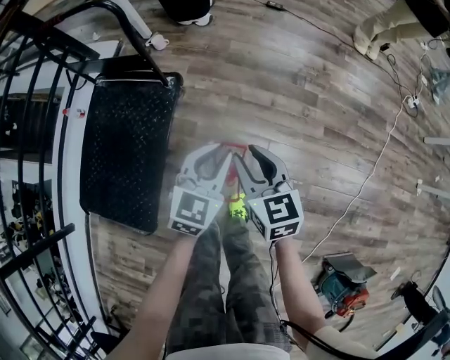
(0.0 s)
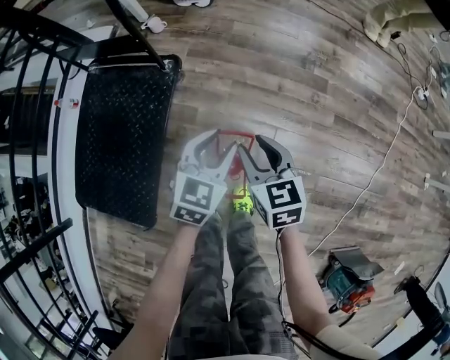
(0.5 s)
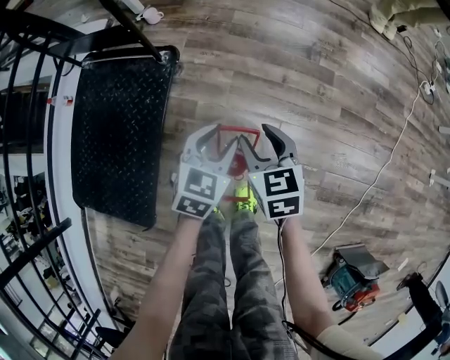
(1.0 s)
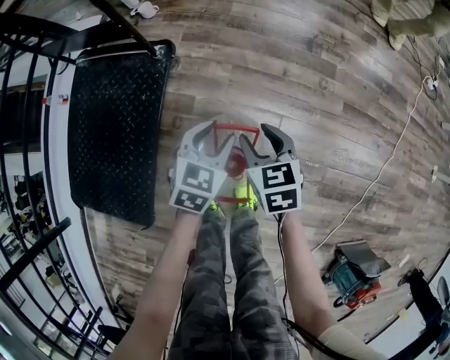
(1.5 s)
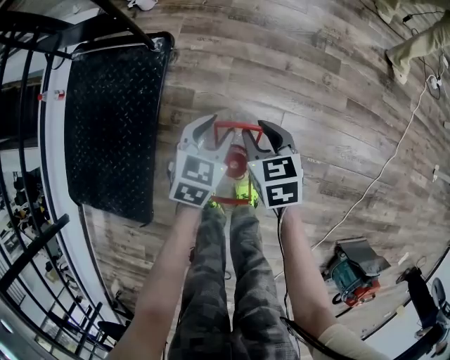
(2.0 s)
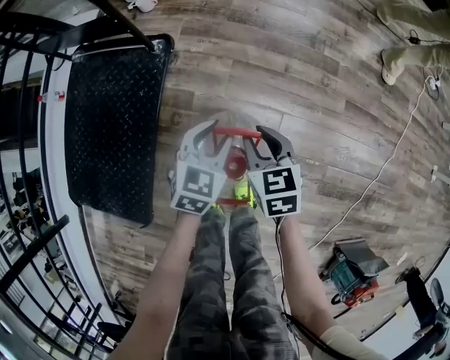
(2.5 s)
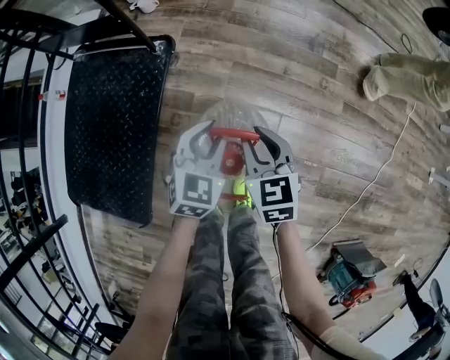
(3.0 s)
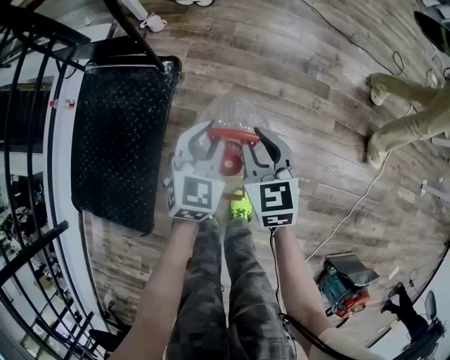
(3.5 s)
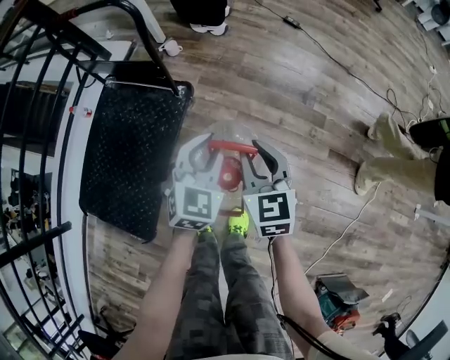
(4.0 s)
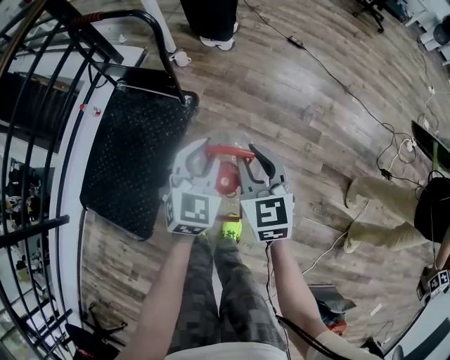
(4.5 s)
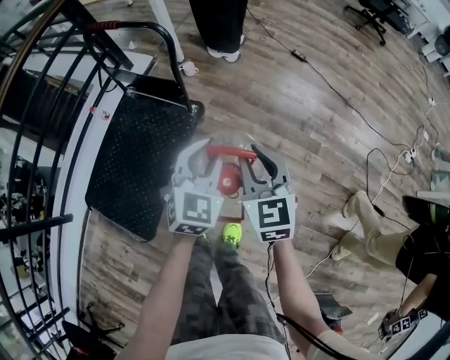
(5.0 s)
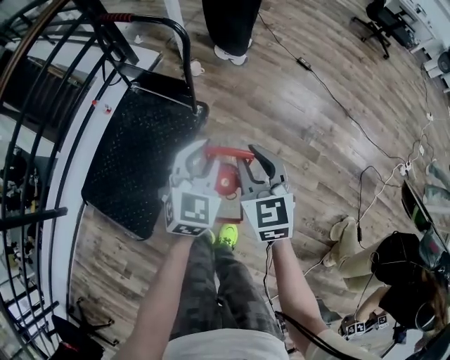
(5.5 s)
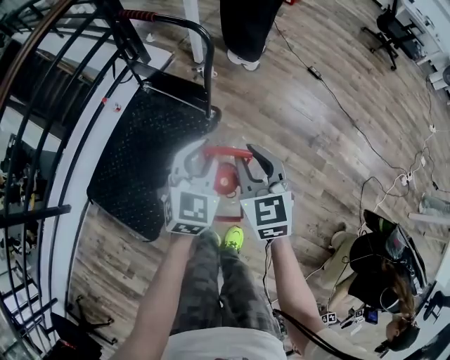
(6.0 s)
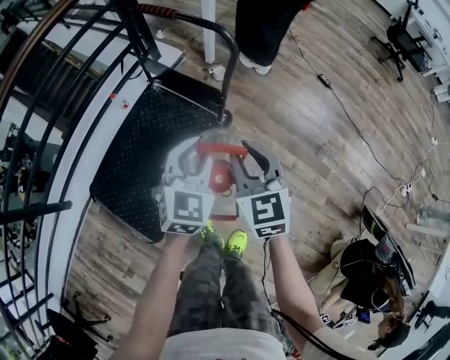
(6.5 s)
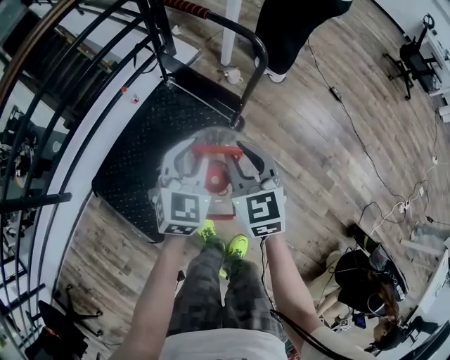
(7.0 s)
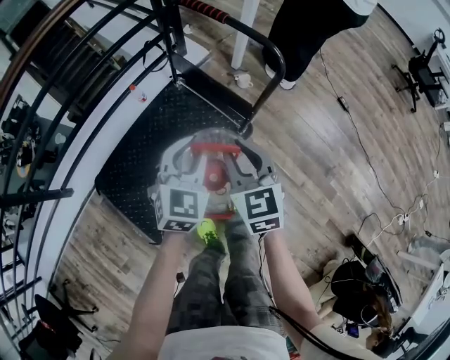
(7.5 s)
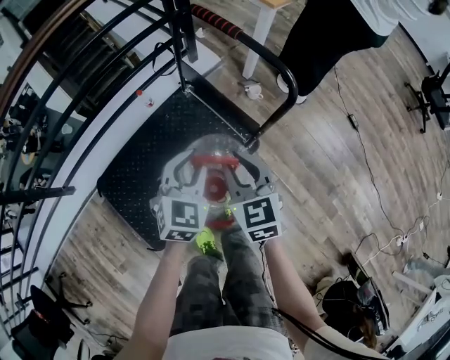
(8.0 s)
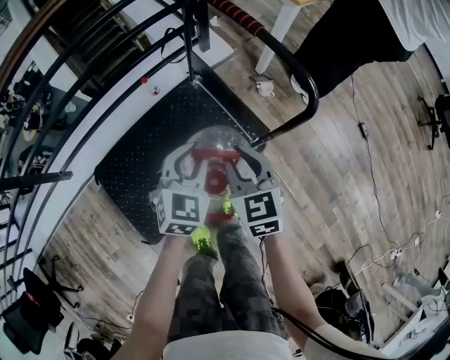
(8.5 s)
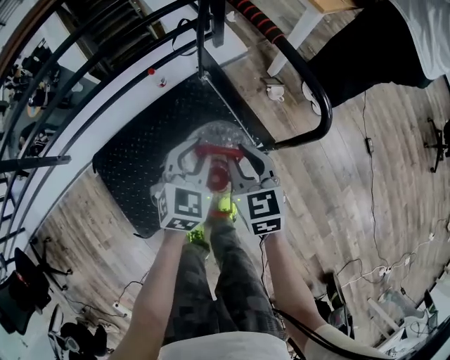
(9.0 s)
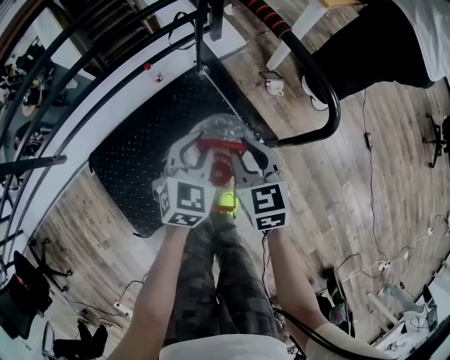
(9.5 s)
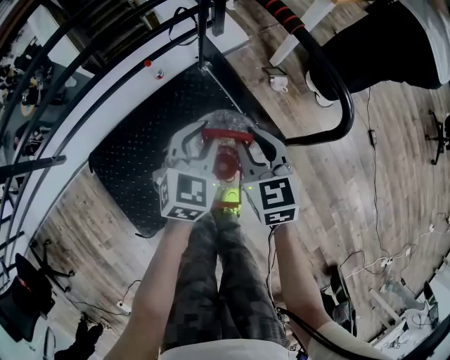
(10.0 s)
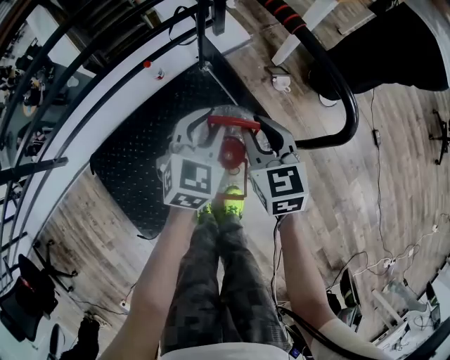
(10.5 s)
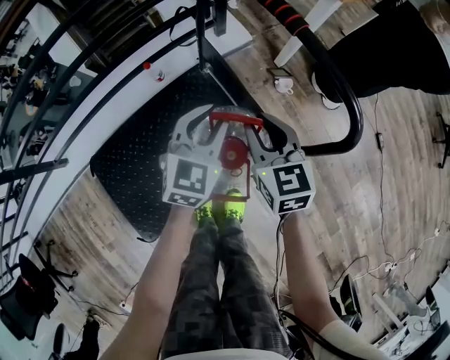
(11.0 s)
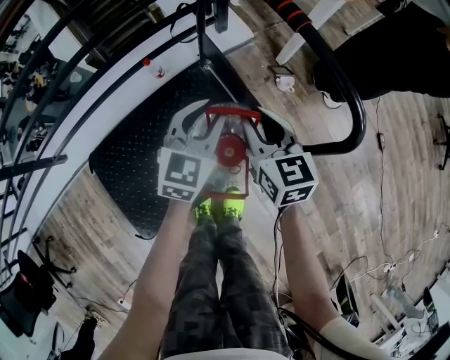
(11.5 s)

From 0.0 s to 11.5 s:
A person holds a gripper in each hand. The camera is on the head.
From 0.0 s to 2.0 s: The two grippers go roughly 25 cm downward. The left gripper opens up.
From 2.0 s to 4.0 s: The two grippers go roughly 25 cm upward. The left gripper swivels some 20 degrees. The right gripper changes its angle by some 20 degrees.
From 4.0 s to 6.0 s: Both grippers move upward and to the left, some 20 cm.
From 6.0 s to 7.5 s: Both grippers travel together to the left and forward, roughly 20 cm.
From 7.5 s to 9.5 s: Both grippers travel together forward and downward, roughly 20 cm.
From 9.5 s to 11.5 s: The grippers both shift forward by approximately 10 cm.

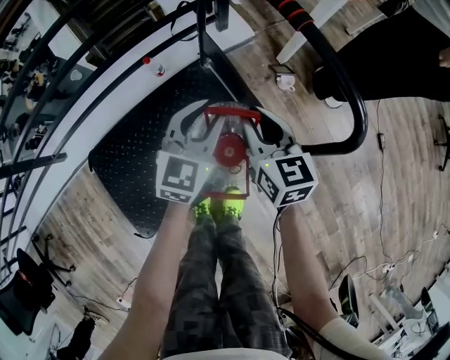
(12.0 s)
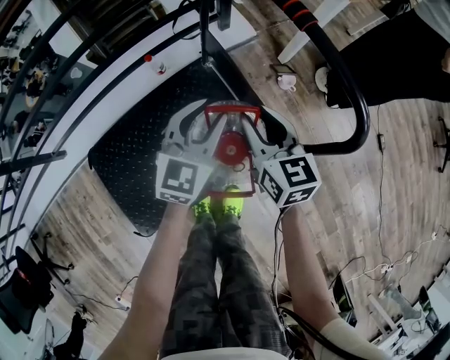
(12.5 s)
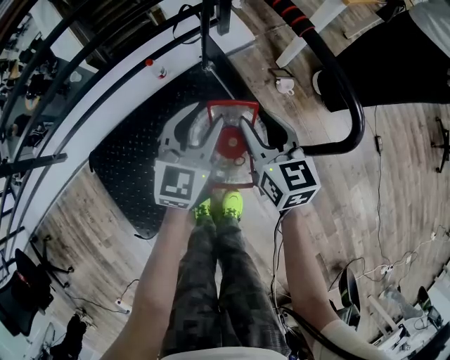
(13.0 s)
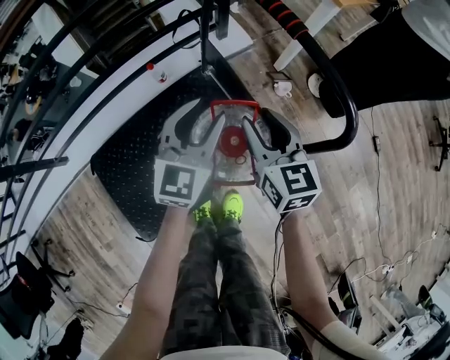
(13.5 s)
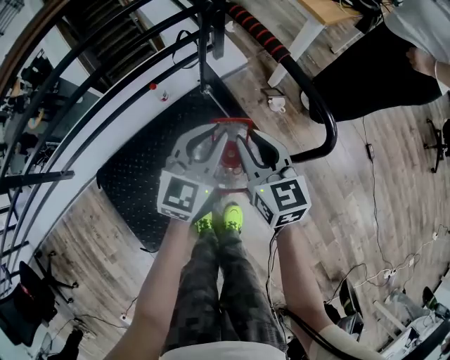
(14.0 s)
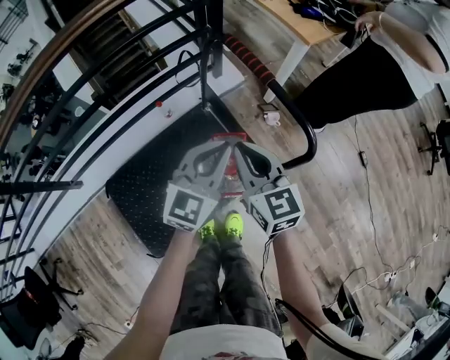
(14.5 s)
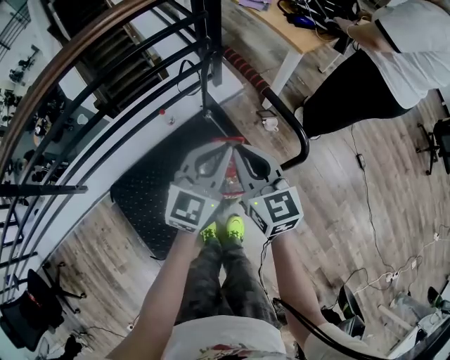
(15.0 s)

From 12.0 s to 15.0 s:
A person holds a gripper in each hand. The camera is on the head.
From 12.0 s to 13.5 s: The right gripper opens. Meanwhile the left gripper is displaced upward by approximately 5 cm.
From 13.5 s to 15.0 s: The grippers both shift upward by approximately 20 cm. The right gripper closes its fingers; the left gripper closes.

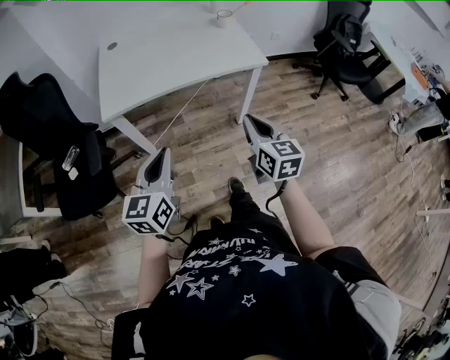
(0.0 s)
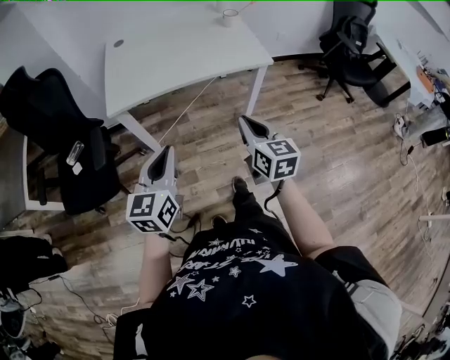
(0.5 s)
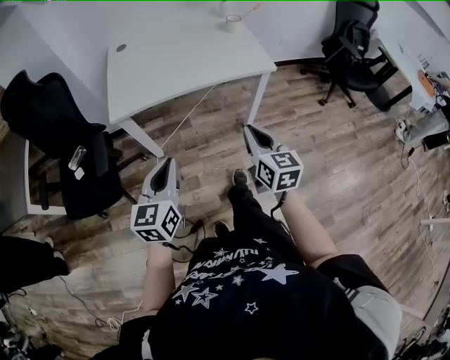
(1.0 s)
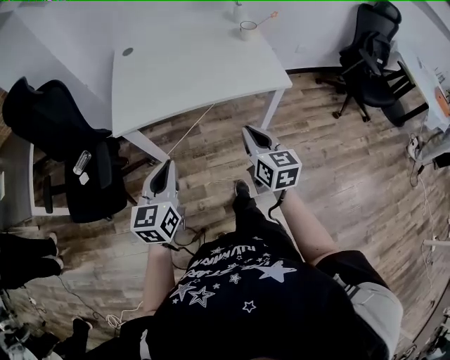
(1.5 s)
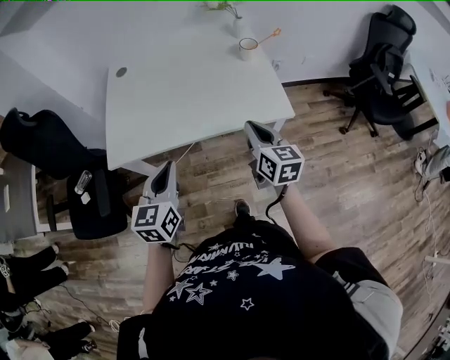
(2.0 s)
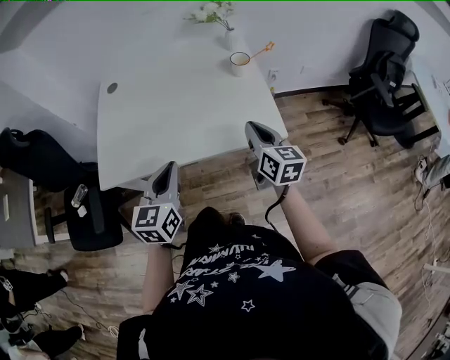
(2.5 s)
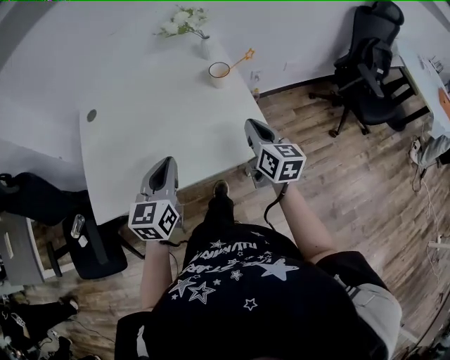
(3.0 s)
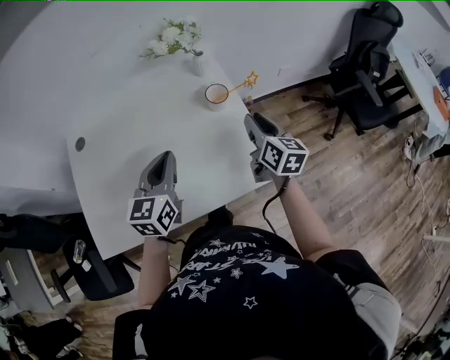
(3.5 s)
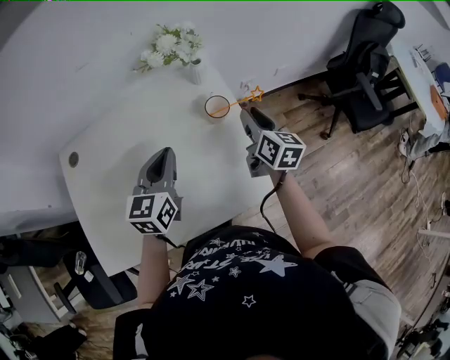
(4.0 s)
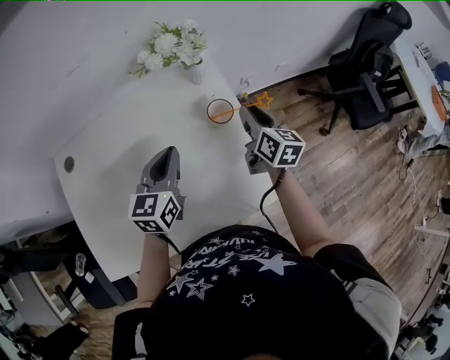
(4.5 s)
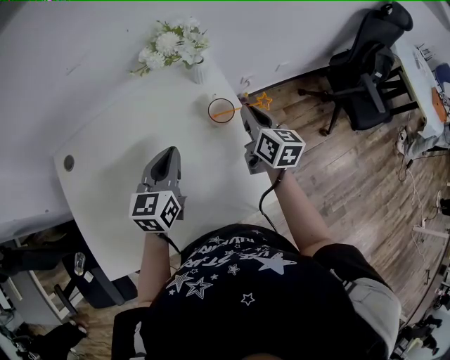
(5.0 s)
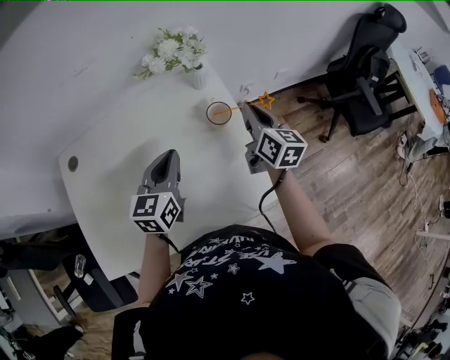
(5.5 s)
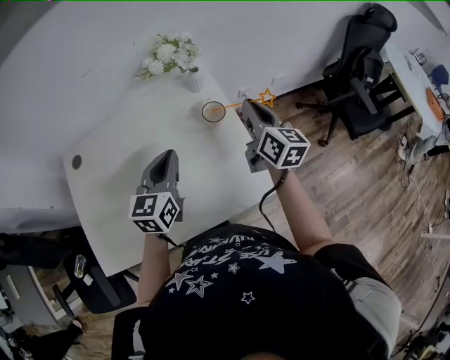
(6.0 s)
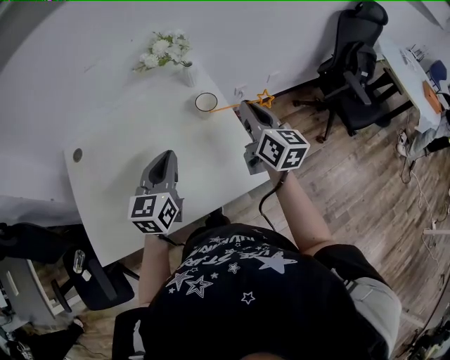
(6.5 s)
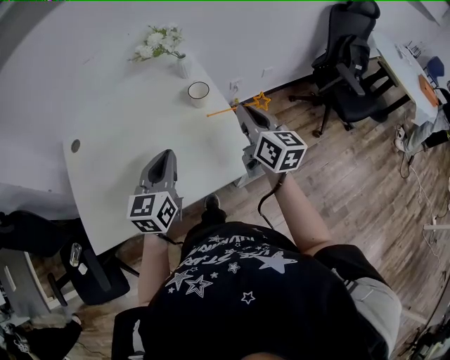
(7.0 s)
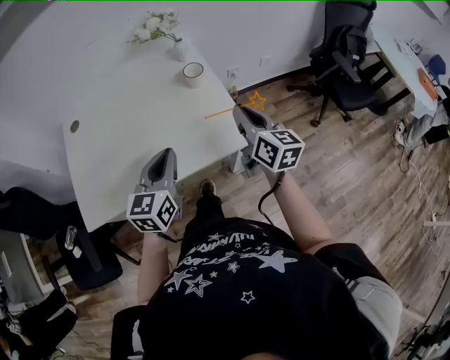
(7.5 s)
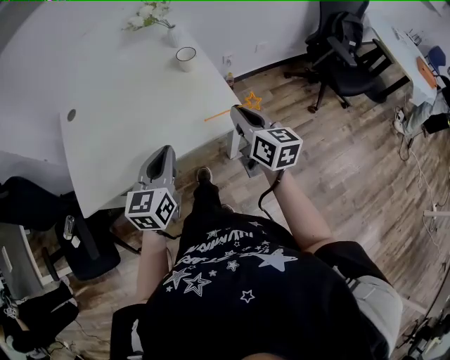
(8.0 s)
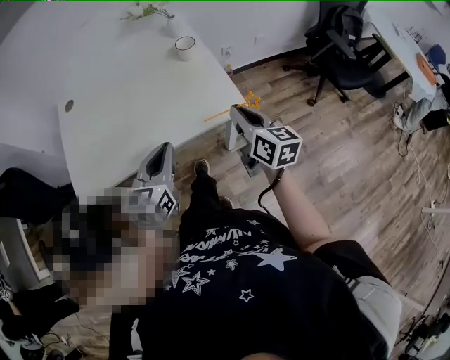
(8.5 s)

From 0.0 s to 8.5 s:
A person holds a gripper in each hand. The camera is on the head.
From 0.0 s to 2.0 s: Both grippers move forward, some 25 cm.
From 2.0 s to 4.0 s: Both grippers move forward, approximately 40 cm. The right gripper rotates some 20 degrees, and opens.
From 4.0 s to 6.5 s: The left gripper heads backward, covering some 5 cm. The right gripper goes roughly 10 cm upward and backward, and closes its fingers.
From 6.5 s to 8.5 s: Both grippers move backward, some 25 cm.

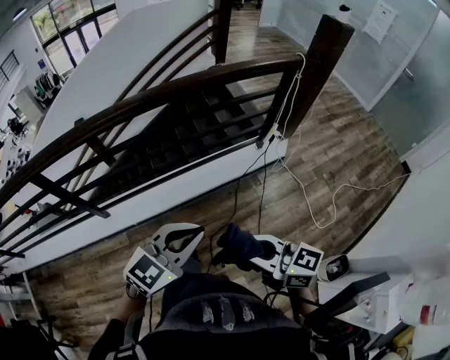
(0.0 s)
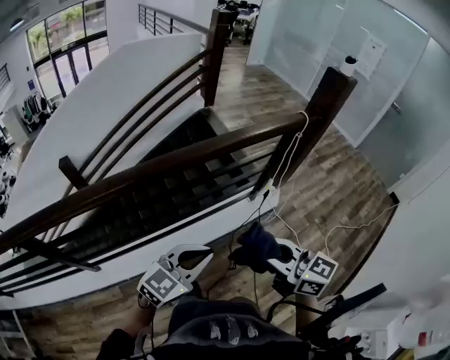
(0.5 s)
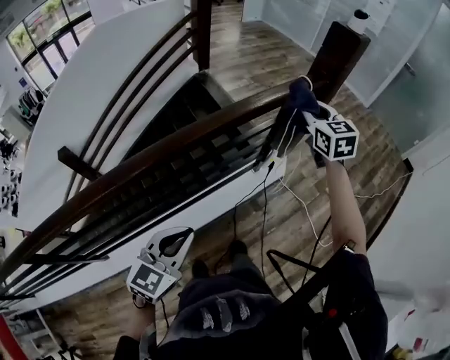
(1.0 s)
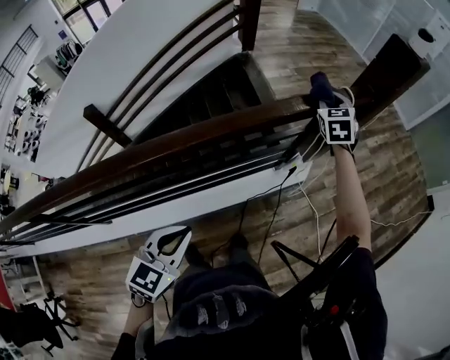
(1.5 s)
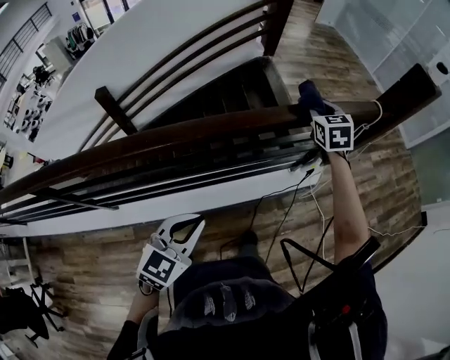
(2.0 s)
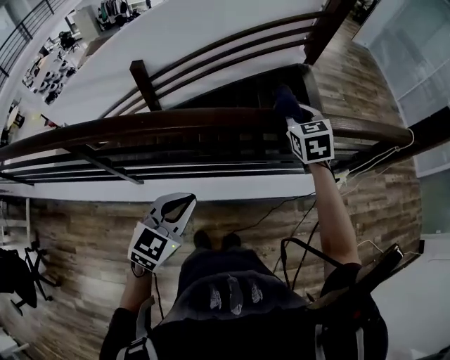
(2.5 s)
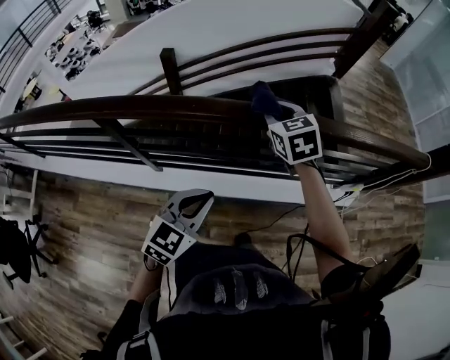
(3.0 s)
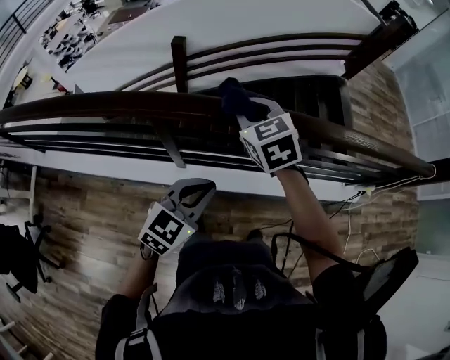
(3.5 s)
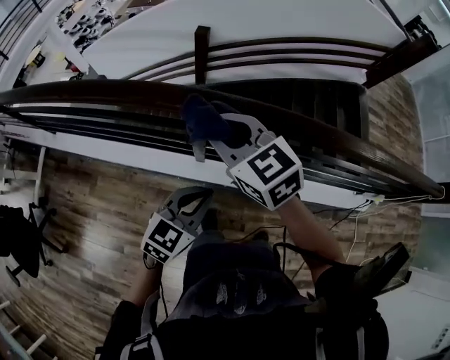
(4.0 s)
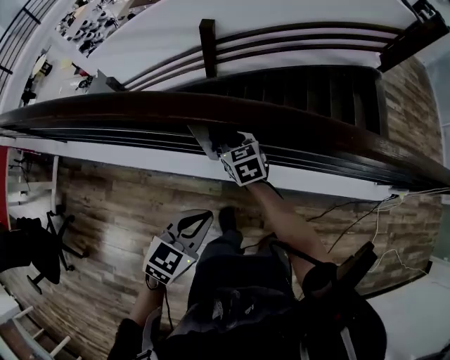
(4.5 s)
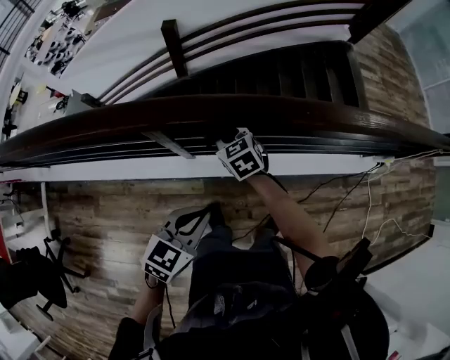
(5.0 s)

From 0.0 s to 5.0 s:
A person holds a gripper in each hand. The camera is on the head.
From 0.0 s to 2.5 s: The left gripper goes roughly 35 cm to the left and forward, and changes its angle by roughly 30 degrees. Meanwhile the right gripper heads forward and to the left, covering about 60 cm, and rotates some 50 degrees.
From 2.5 s to 5.0 s: The left gripper moves approximately 40 cm. The right gripper shifts by about 60 cm, and changes its angle by approximately 30 degrees.
